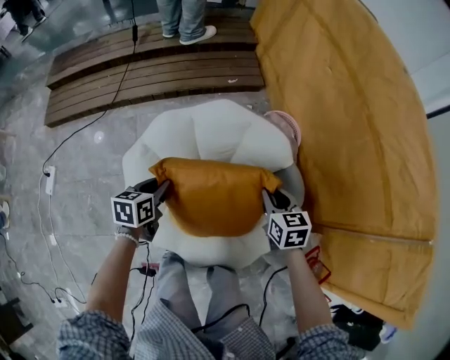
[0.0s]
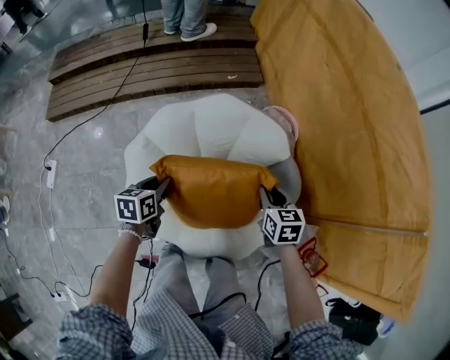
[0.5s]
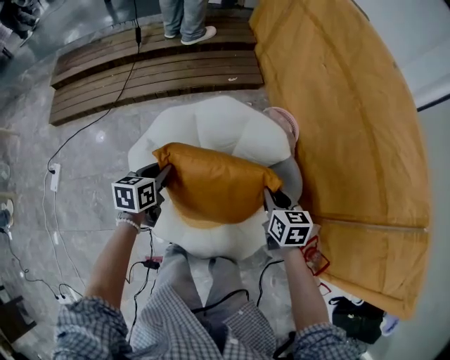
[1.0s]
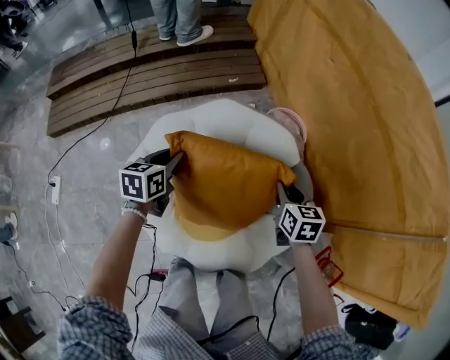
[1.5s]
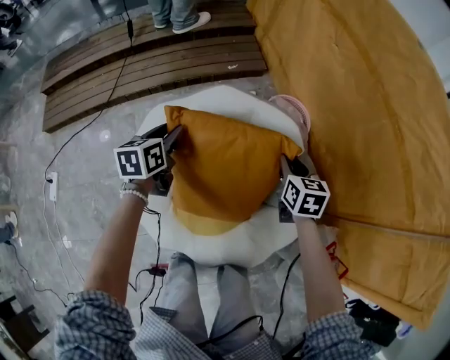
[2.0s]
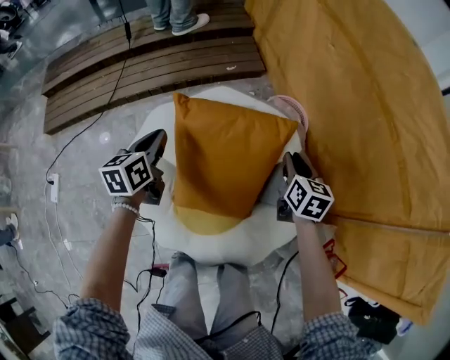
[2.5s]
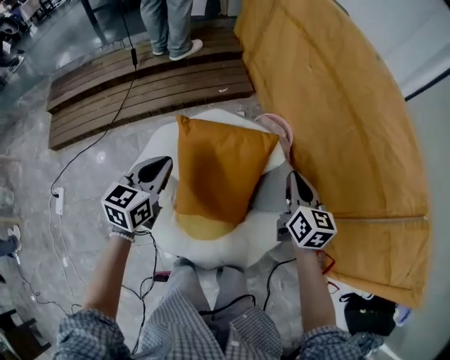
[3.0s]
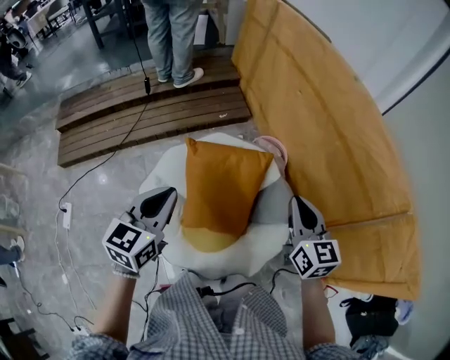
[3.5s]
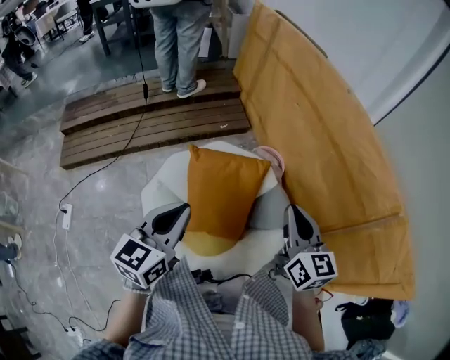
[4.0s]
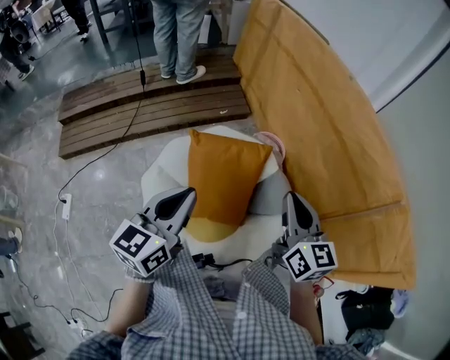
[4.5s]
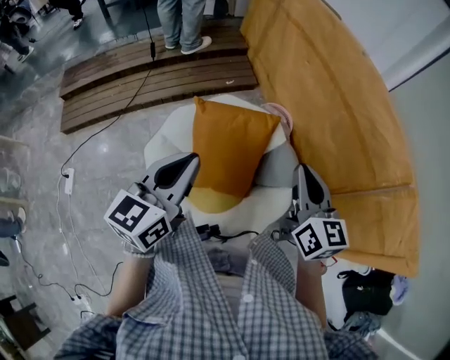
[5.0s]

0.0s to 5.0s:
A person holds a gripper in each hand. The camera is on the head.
0.0s to 2.5s: The right gripper shifts about 10 cm forward, and changes its angle by about 20 degrees; the left gripper goes roughly 15 cm forward and upward.
2.5s to 5.0s: Both grippers travel together upward and backward, approximately 40 cm. The left gripper rotates some 30 degrees, while the right gripper turns by roughly 30 degrees, and closes.

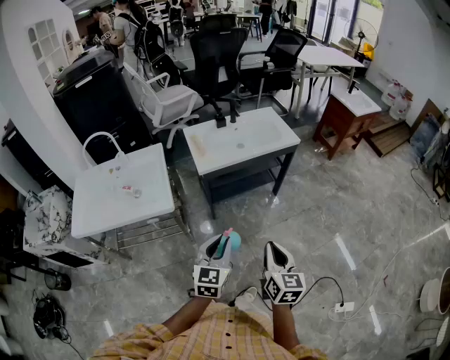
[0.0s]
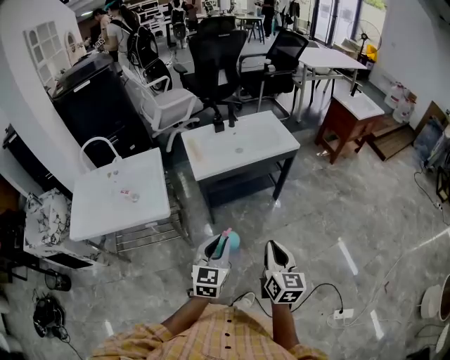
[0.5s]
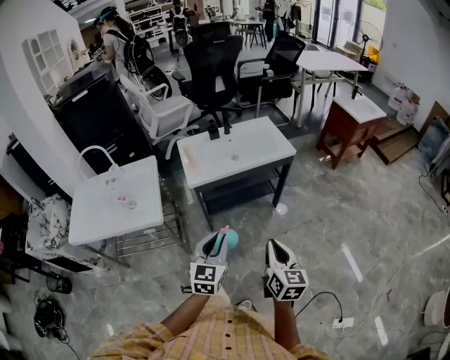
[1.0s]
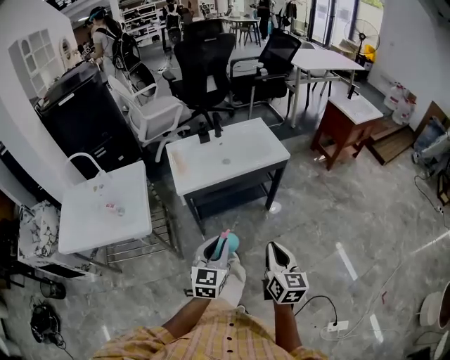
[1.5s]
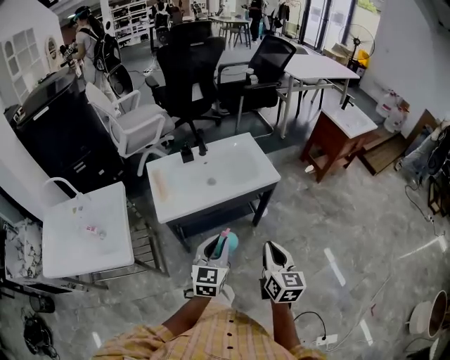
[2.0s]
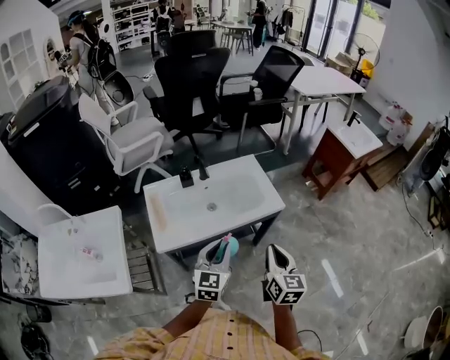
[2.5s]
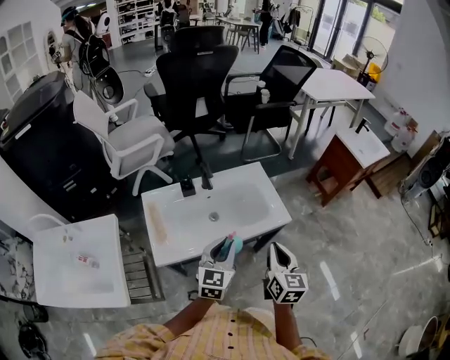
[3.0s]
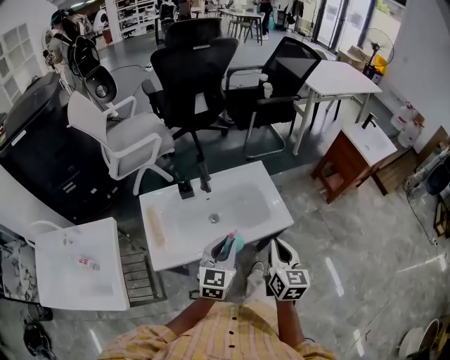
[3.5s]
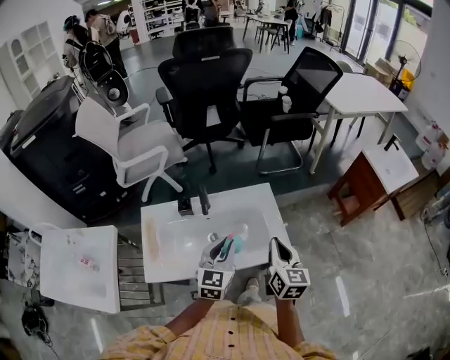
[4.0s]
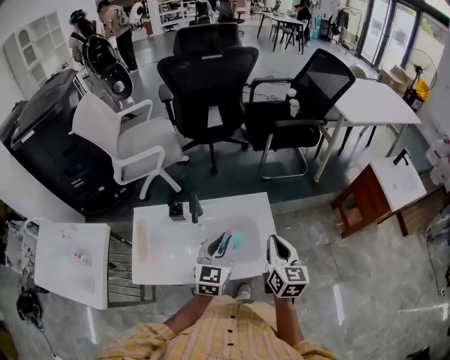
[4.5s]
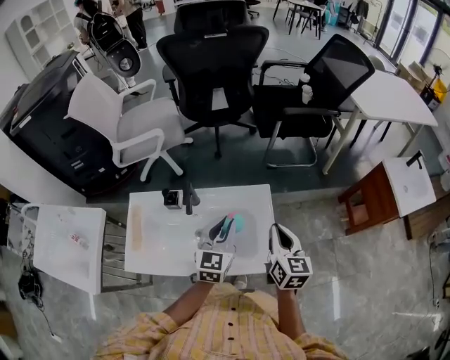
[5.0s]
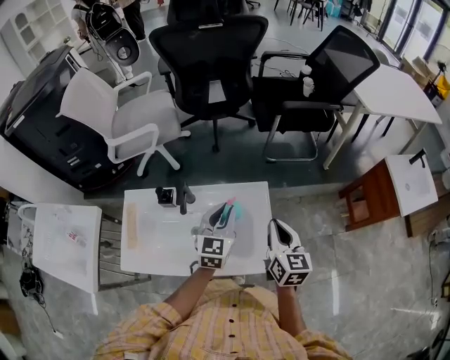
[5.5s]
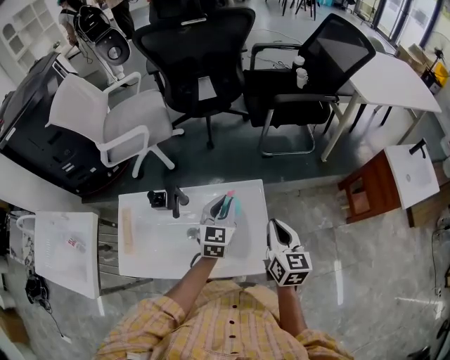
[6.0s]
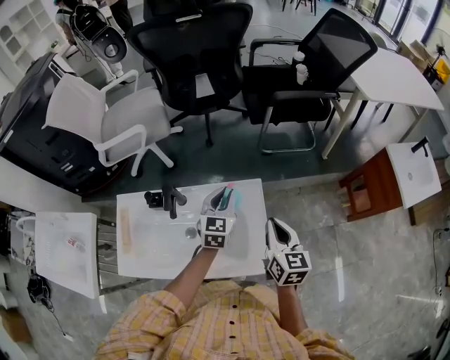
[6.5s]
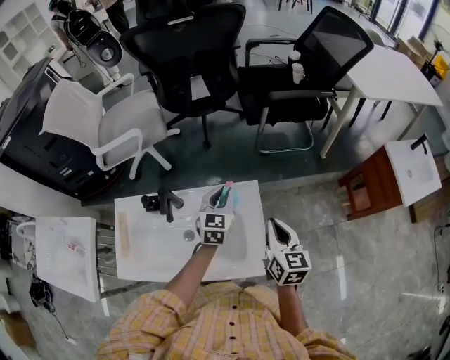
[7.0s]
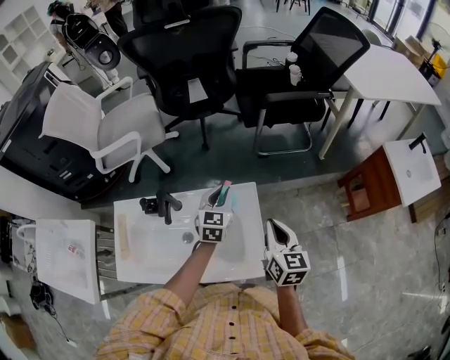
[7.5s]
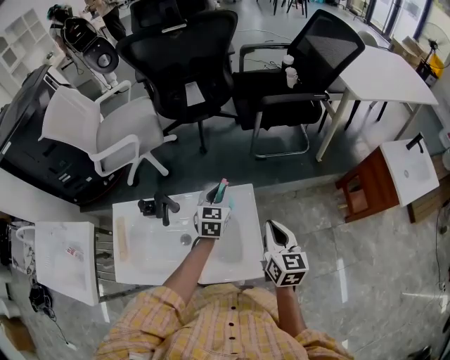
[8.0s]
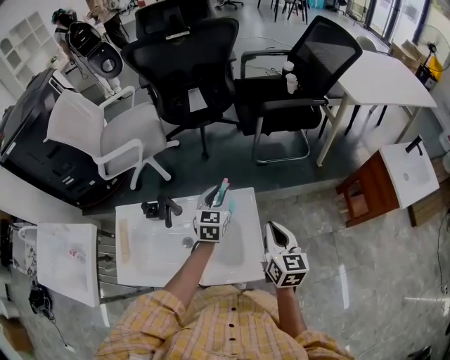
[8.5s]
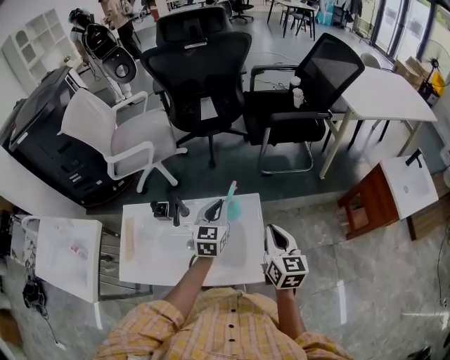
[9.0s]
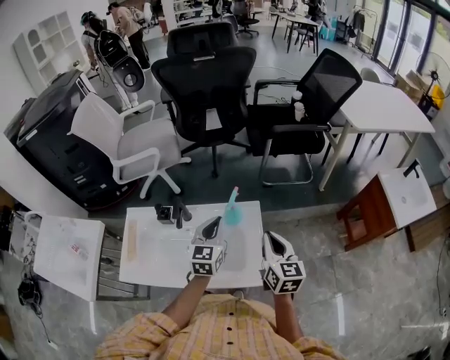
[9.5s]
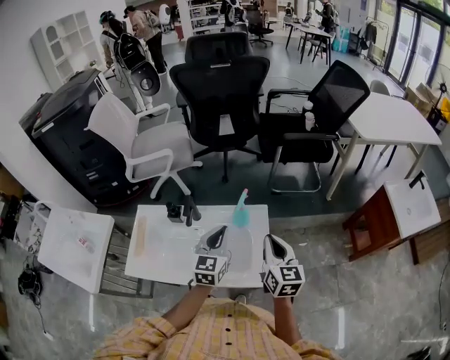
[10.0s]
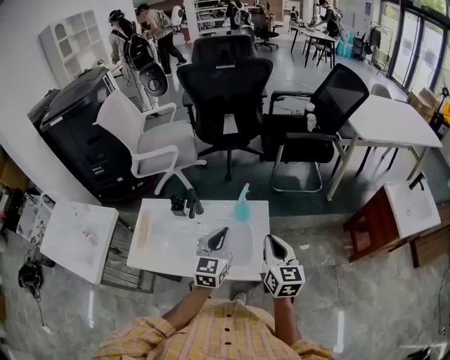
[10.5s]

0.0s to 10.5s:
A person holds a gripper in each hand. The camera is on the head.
0.0s to 2.0s: Both grippers travel together forward and to the right, about 35 cm.
2.0s to 4.0s: Both grippers move forward, roughly 40 cm.
4.0s to 6.5s: The grippers both shift forward and to the right by some 25 cm.
6.5s to 8.5s: The grippers stay close to where they were, moving slightly.
8.5s to 10.5s: The right gripper is displaced backward and upward by about 10 cm. The left gripper travels backward and upward by some 25 cm, and closes.

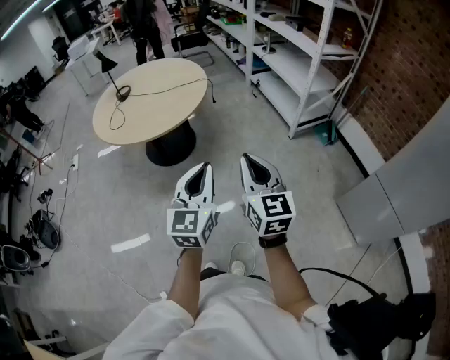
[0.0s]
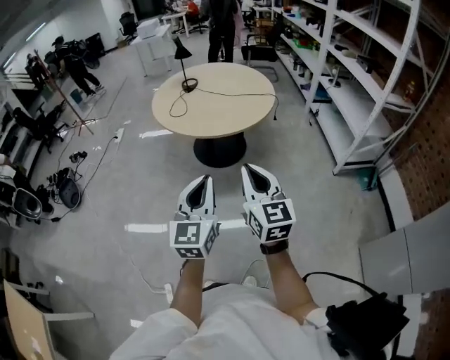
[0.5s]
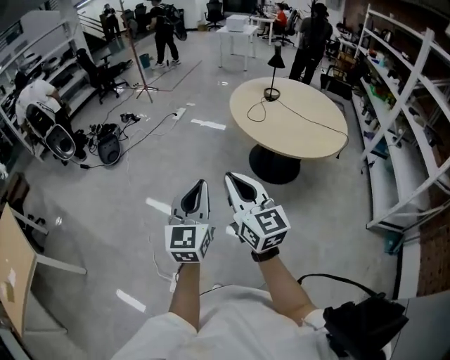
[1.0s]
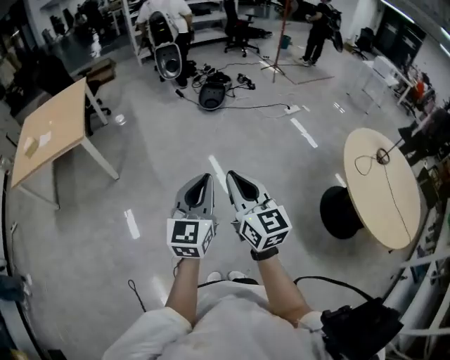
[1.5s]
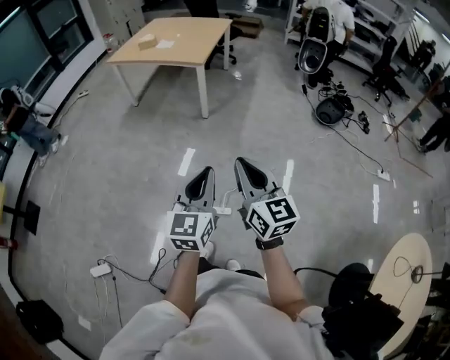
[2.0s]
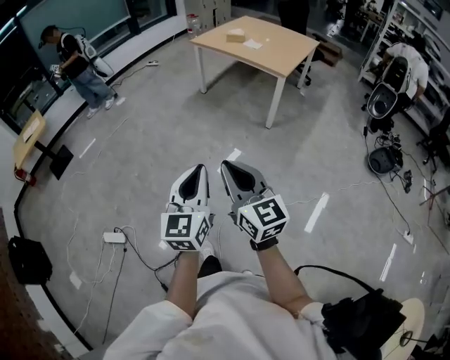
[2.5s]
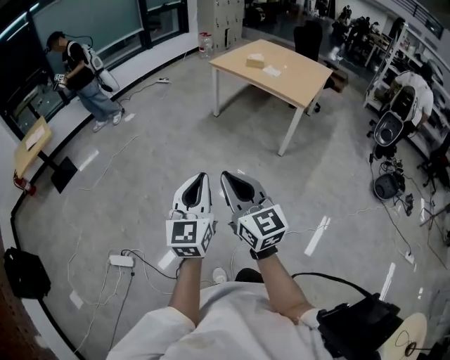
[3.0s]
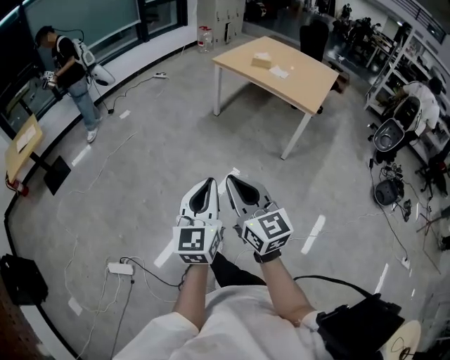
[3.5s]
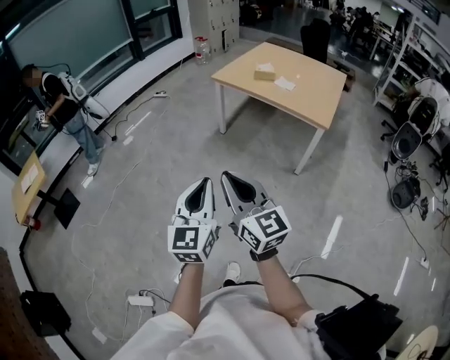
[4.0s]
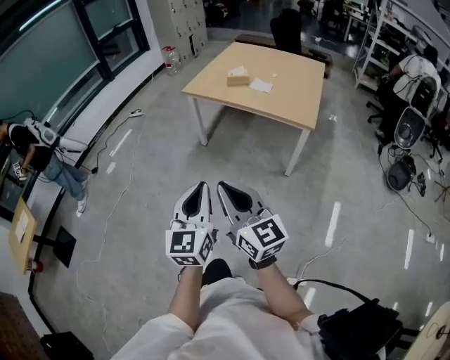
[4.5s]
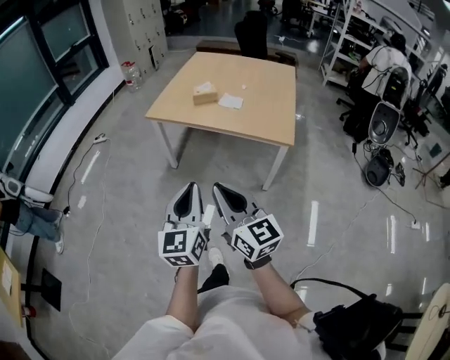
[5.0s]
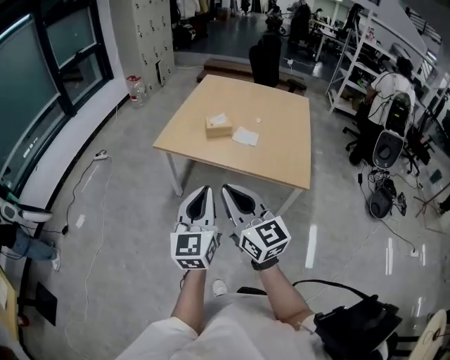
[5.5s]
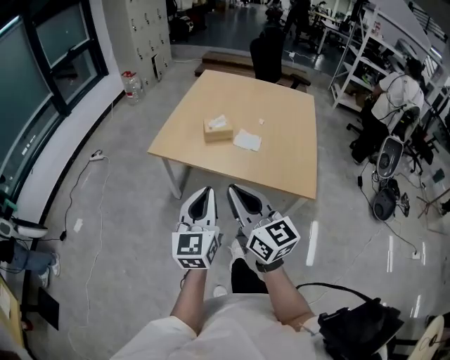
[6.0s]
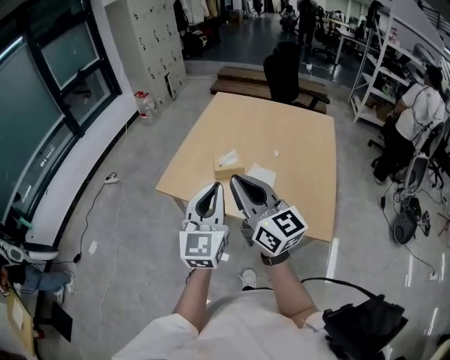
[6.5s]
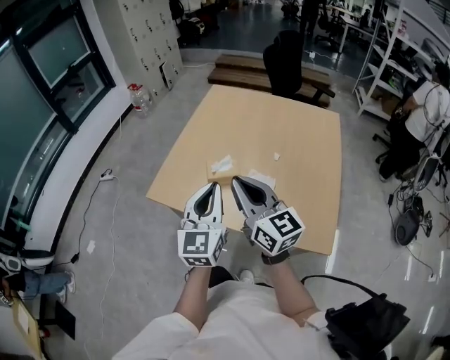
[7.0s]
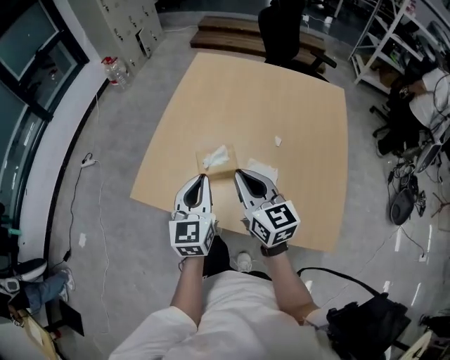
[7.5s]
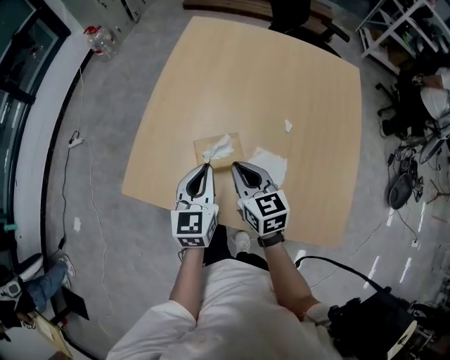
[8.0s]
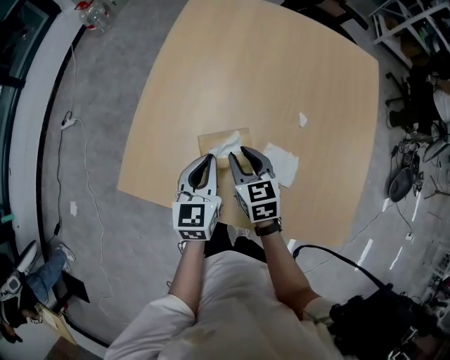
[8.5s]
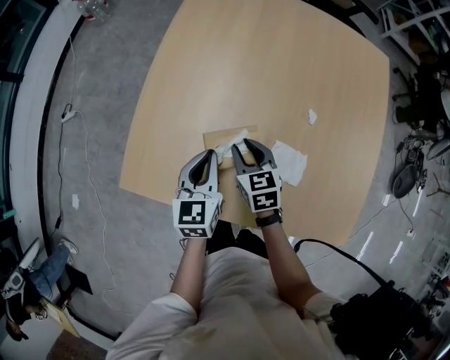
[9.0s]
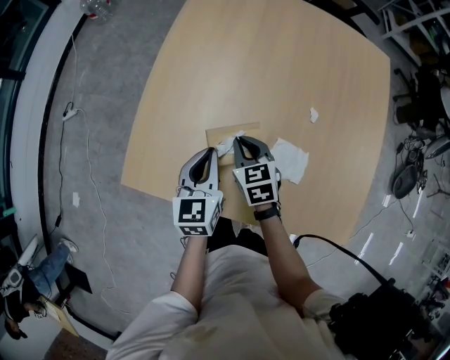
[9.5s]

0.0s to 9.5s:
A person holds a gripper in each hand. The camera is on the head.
0.0s to 2.0s: The two grippers travel together, approximately 80 cm. The left gripper rotates about 120 degrees. Meanwhile the right gripper rotates about 130 degrees.
2.0s to 4.0s: The pair of grippers is taken about 70 cm. The right gripper swivels about 30 degrees. The left gripper swivels roughly 20 degrees.
4.0s to 5.5s: Both grippers are carried forward, some 50 cm.
5.5s to 7.5s: The two grippers travel together, forward, roughly 60 cm.
7.5s to 9.5s: Both grippers travel together downward and forward, about 25 cm. The right gripper points its fingers some 30 degrees further downward, and opens, then closes once more.

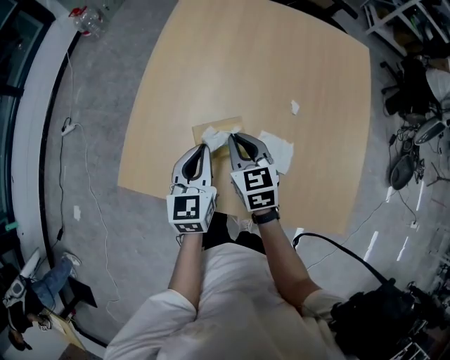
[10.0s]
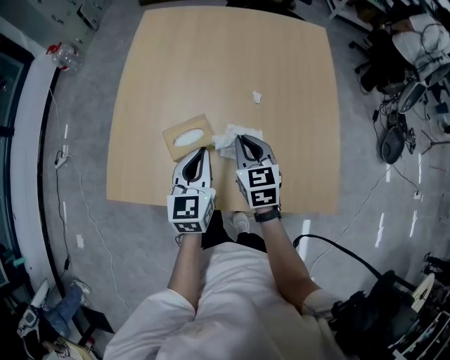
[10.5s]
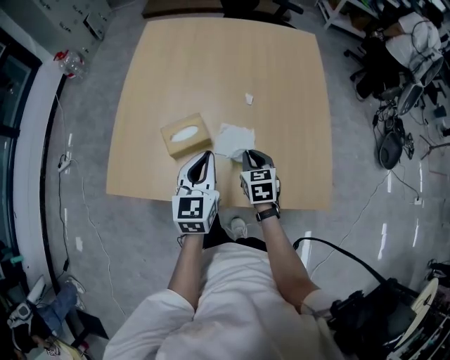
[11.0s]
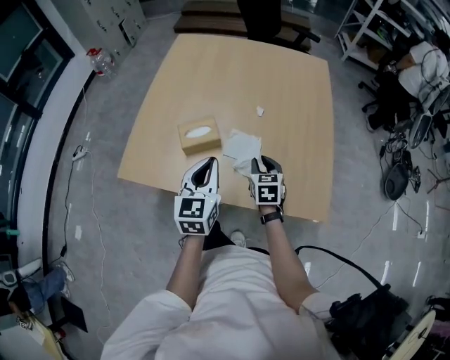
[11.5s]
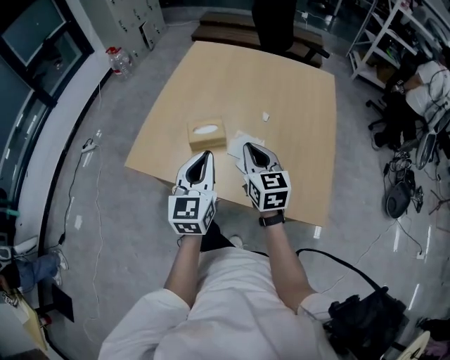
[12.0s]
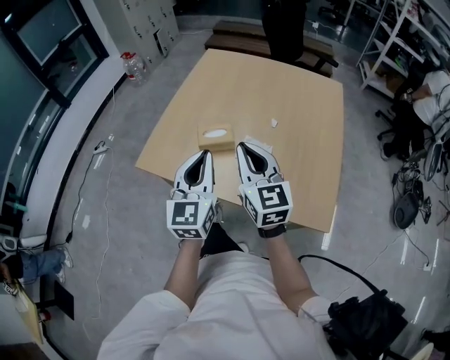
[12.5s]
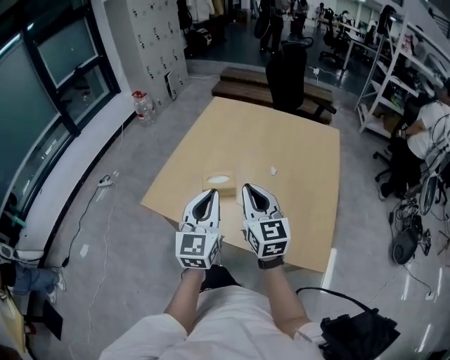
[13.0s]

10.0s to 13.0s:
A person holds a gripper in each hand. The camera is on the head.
10.0s to 11.5s: The right gripper heads to the right and backward, covering some 25 cm; the left gripper is displaced backward, to the right and upward by about 20 cm.
11.5s to 13.0s: The left gripper travels upward and backward by approximately 15 cm, and turns by roughly 20 degrees. The right gripper shifts approximately 25 cm upward, and tilts its fingers some 30 degrees upward.
